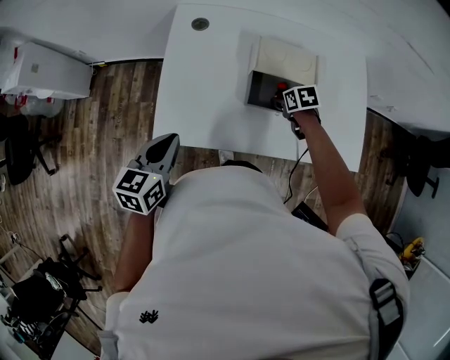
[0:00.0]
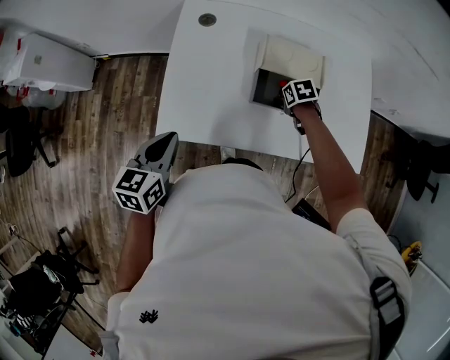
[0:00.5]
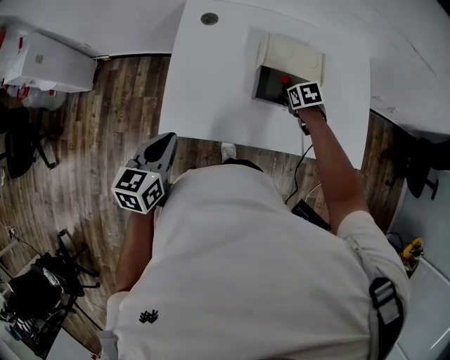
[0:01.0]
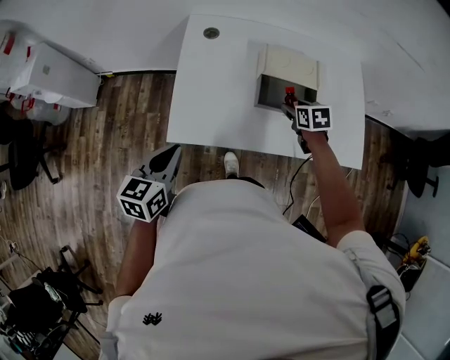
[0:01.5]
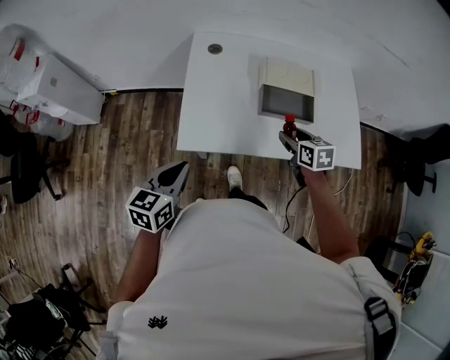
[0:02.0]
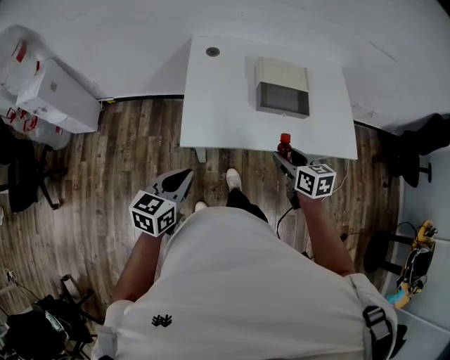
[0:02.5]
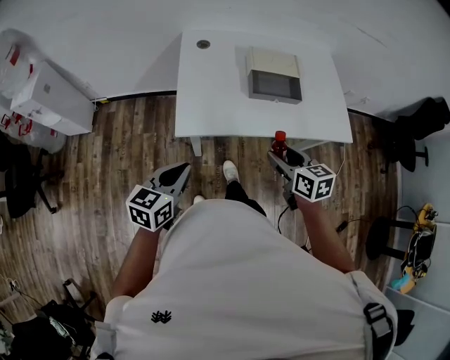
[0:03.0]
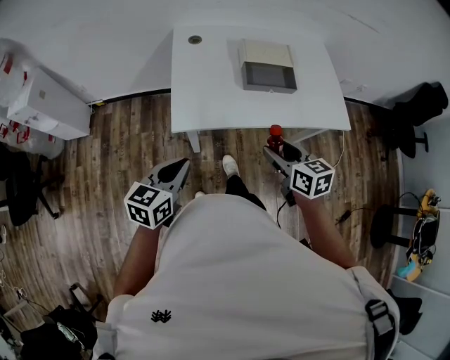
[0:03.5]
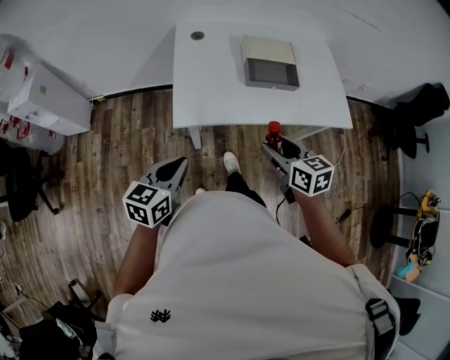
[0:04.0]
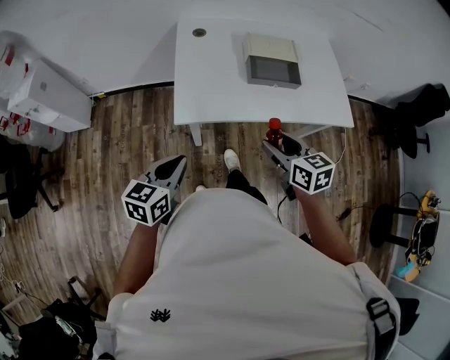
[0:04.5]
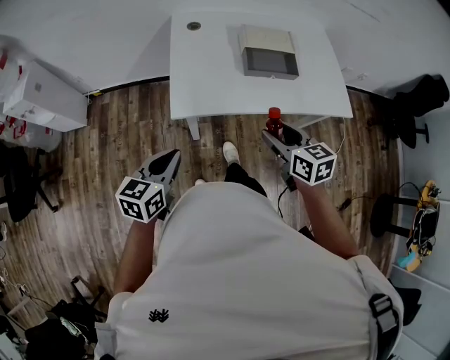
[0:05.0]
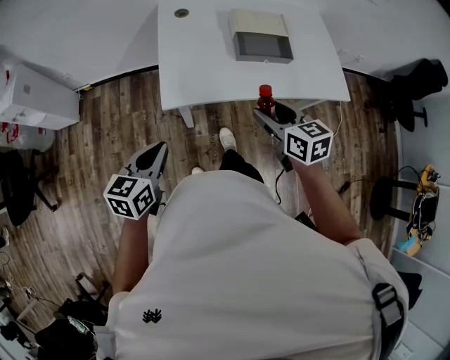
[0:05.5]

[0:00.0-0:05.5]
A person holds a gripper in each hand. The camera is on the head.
0:00.0 to 0:02.0: The right gripper ends up roughly 20 cm from where it was, and turns by approximately 30 degrees, while the left gripper moves roughly 10 cm.
0:02.0 to 0:03.5: The right gripper heads backward, covering about 20 cm. The left gripper heads backward, covering about 10 cm.
0:03.5 to 0:05.5: The grippers make only small movements.

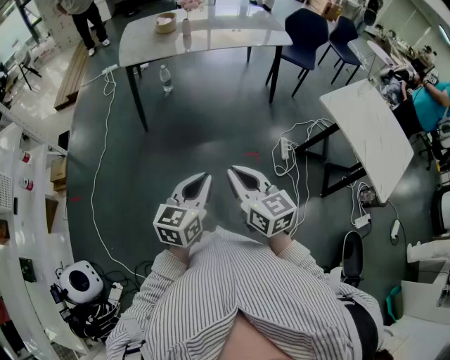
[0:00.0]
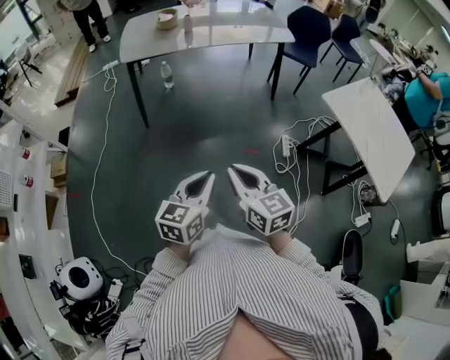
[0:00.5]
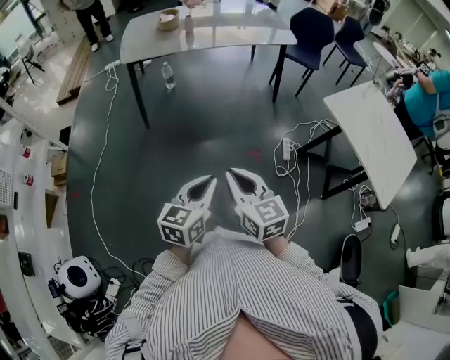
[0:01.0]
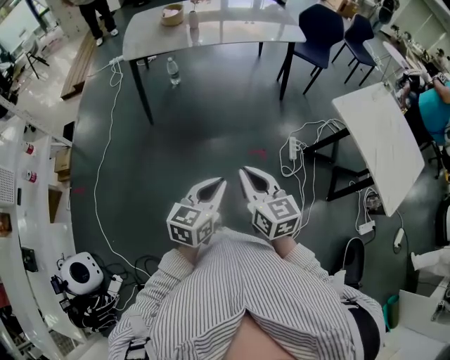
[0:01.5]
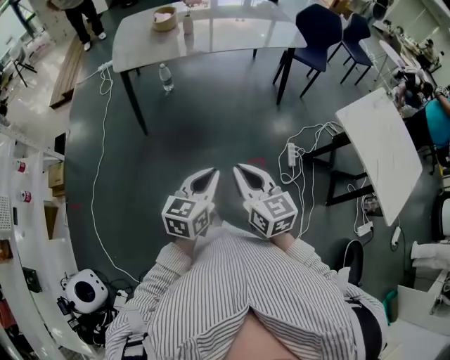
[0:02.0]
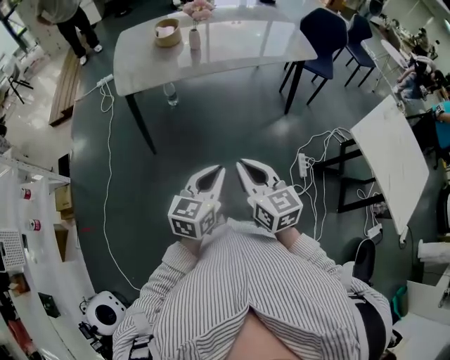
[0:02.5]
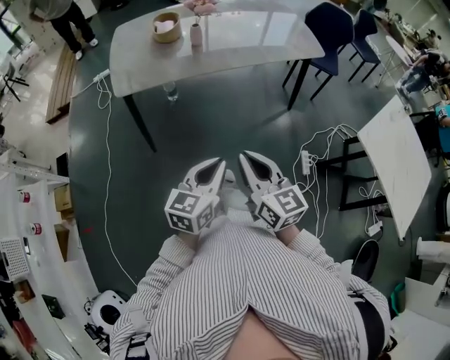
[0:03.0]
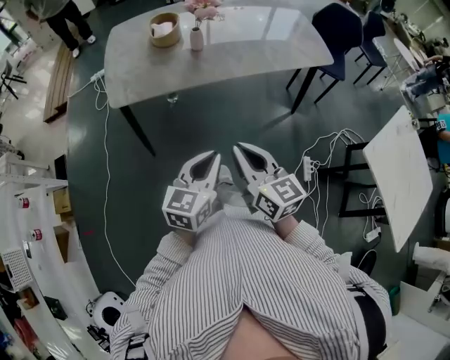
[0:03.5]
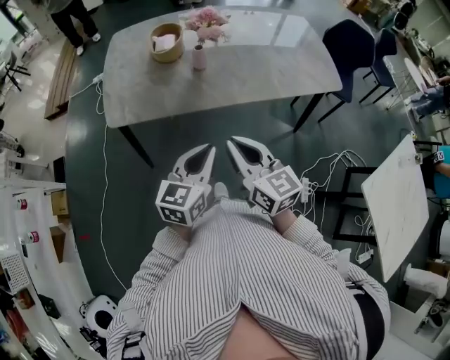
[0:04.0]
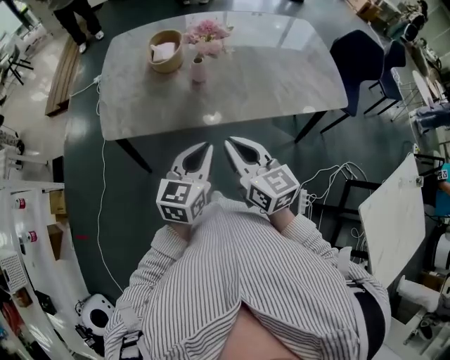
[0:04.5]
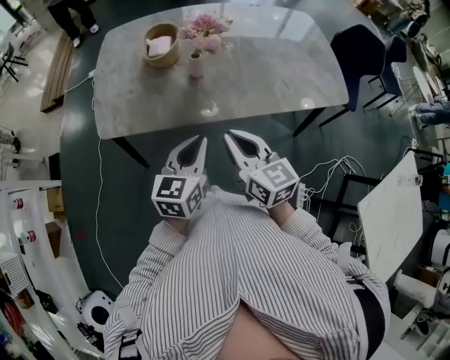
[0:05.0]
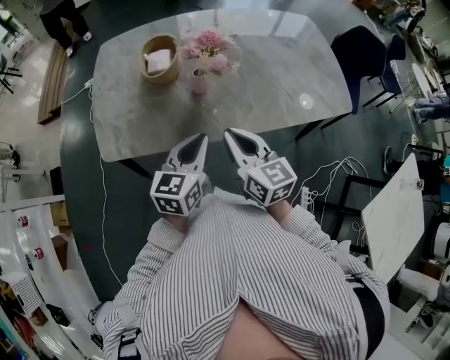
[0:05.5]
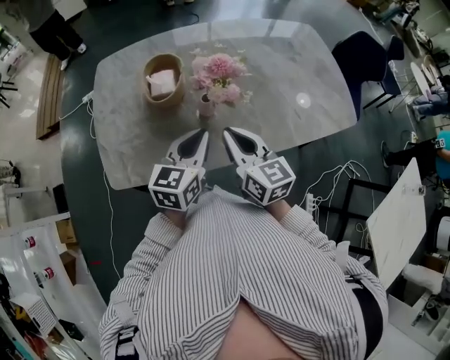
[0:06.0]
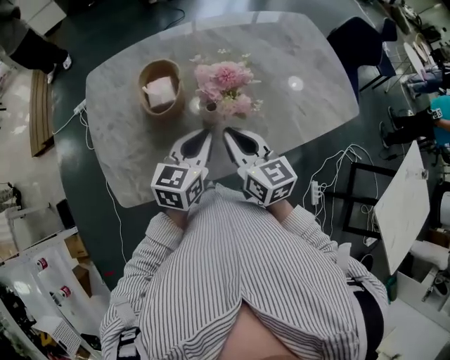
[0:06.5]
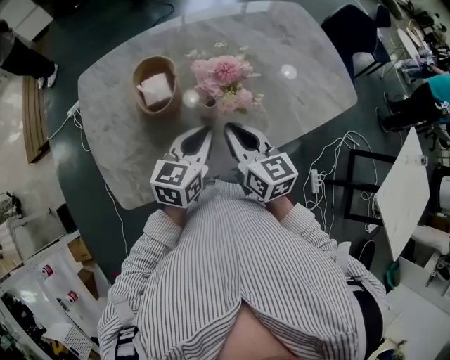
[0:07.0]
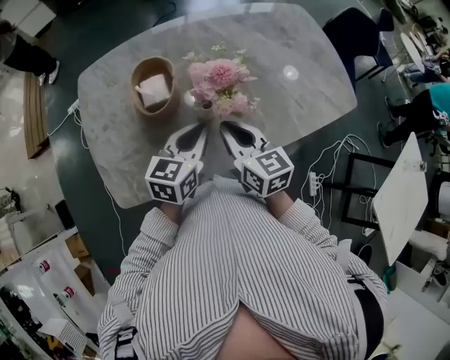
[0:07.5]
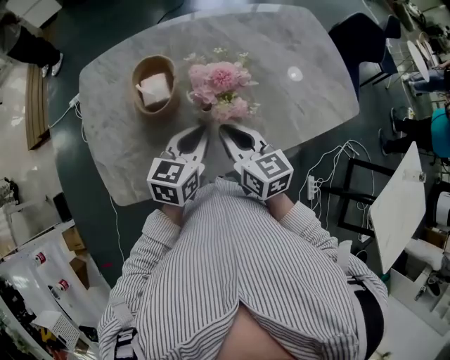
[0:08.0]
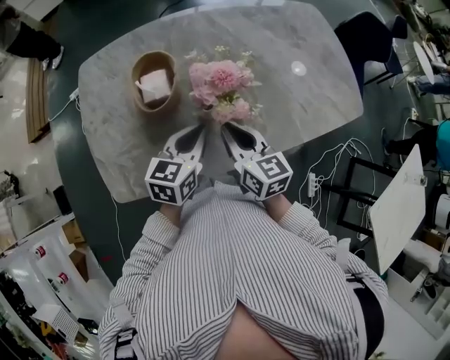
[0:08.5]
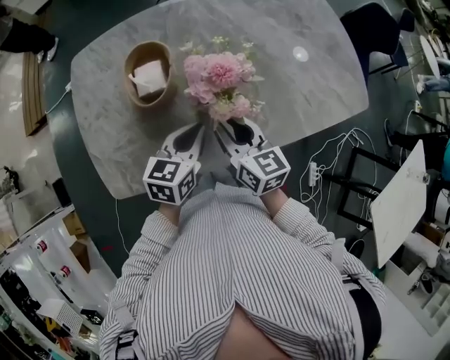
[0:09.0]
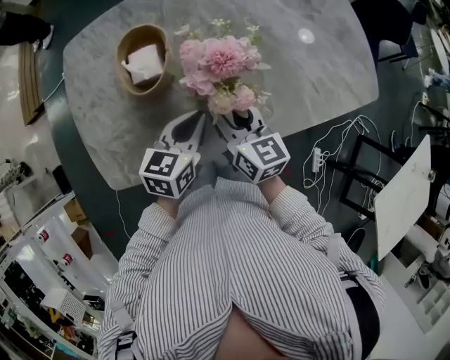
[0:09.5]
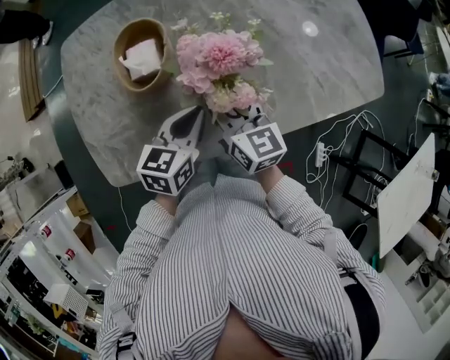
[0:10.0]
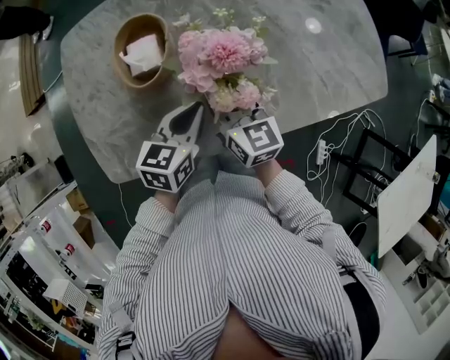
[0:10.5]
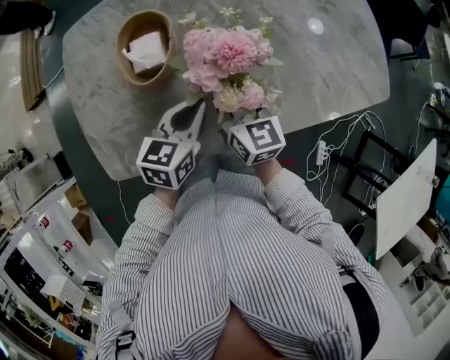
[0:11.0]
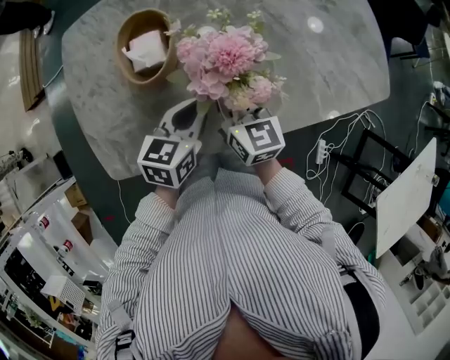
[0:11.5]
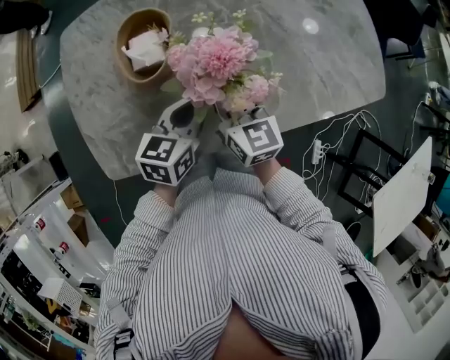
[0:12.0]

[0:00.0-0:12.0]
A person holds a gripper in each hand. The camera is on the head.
0:00.0 to 0:02.0: The grippers both shift forward by approximately 15 cm.
0:02.0 to 0:04.0: The two grippers travel together, forward, some 50 cm.
0:04.0 to 0:06.0: Both grippers travel together forward, about 30 cm.
0:06.0 to 0:08.0: Both grippers move forward, roughly 5 cm.
0:08.0 to 0:10.0: The right gripper goes about 5 cm forward, and opens up; the left gripper shifts approximately 5 cm downward.
0:10.0 to 0:12.0: The right gripper closes its fingers.

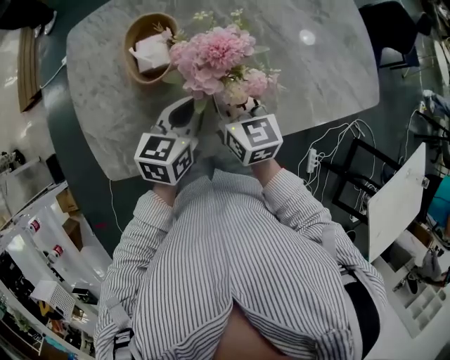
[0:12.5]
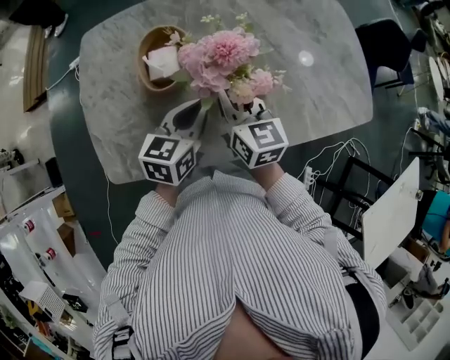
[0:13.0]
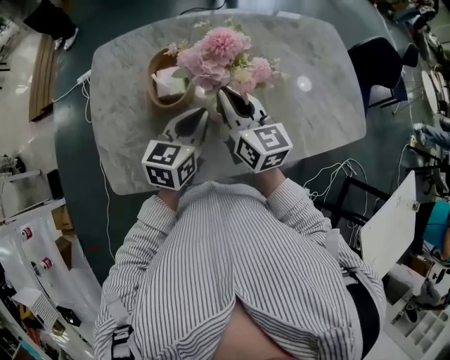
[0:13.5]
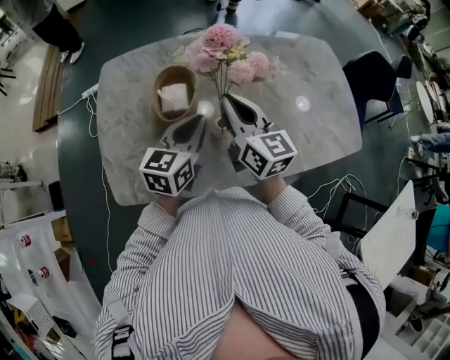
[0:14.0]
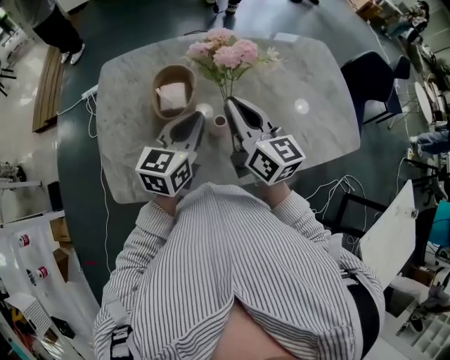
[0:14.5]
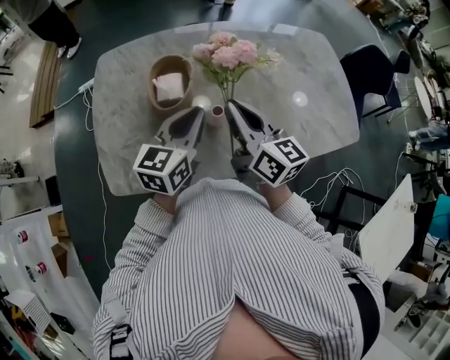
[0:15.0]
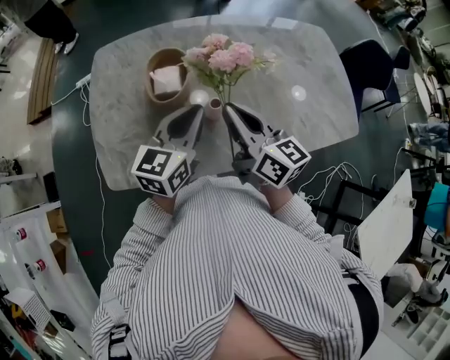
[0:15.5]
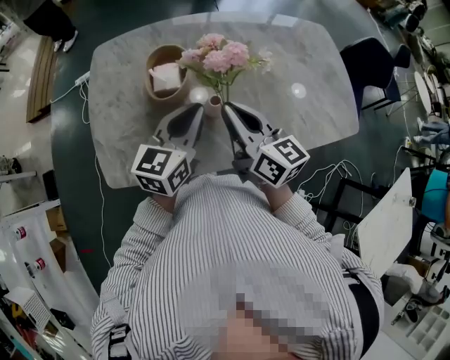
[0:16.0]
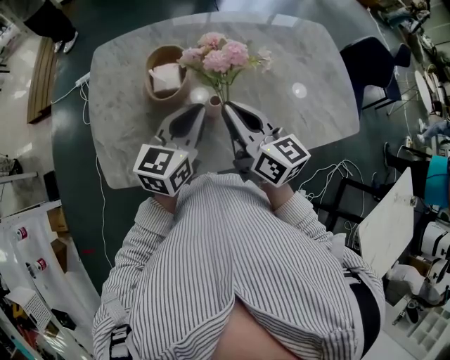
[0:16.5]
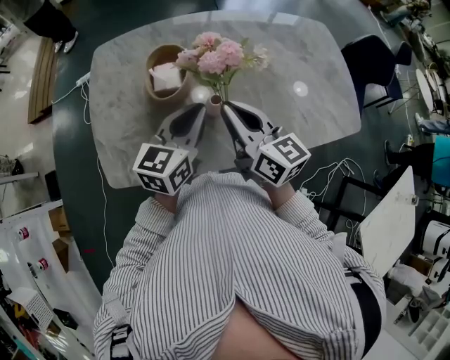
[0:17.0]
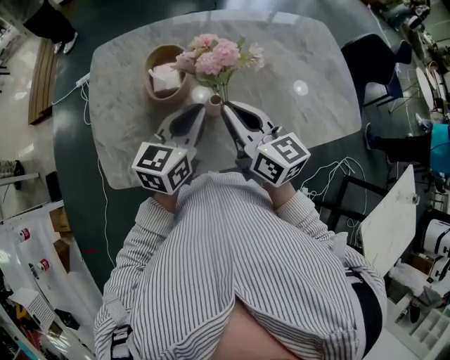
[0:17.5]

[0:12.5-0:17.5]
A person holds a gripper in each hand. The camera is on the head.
0:12.5 to 0:15.0: The two grippers go about 10 cm upward.
0:15.0 to 0:17.5: The grippers move only a little.

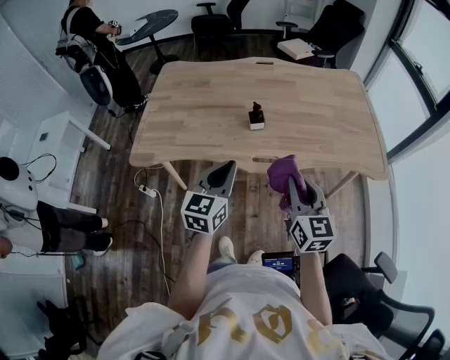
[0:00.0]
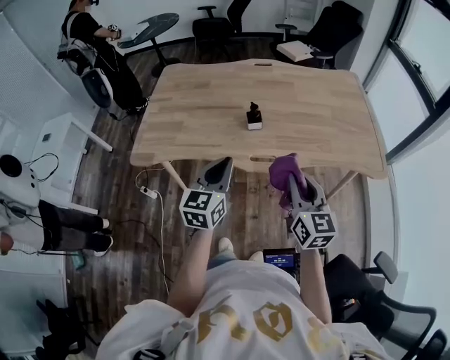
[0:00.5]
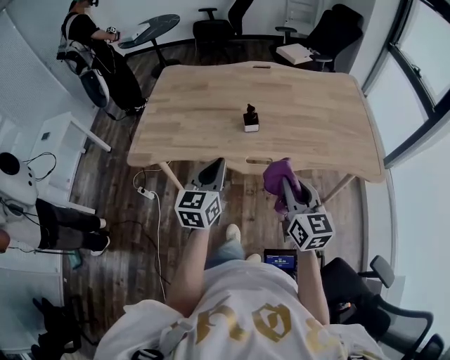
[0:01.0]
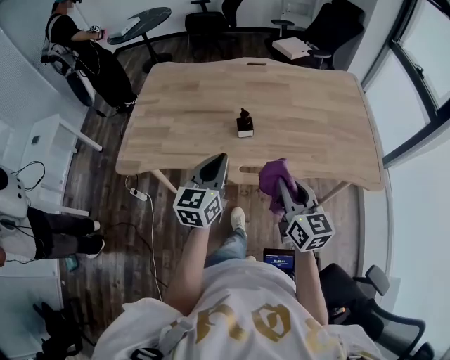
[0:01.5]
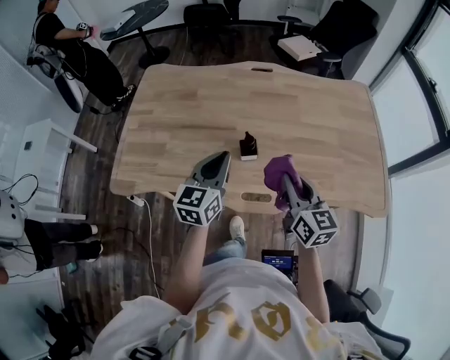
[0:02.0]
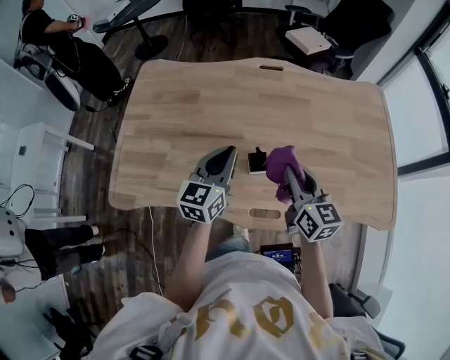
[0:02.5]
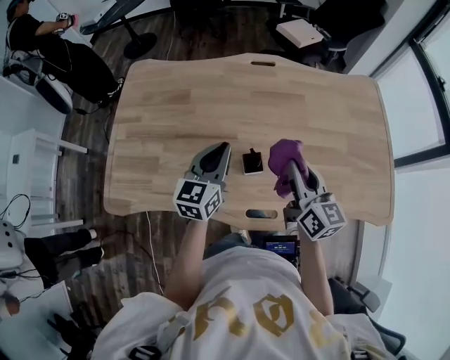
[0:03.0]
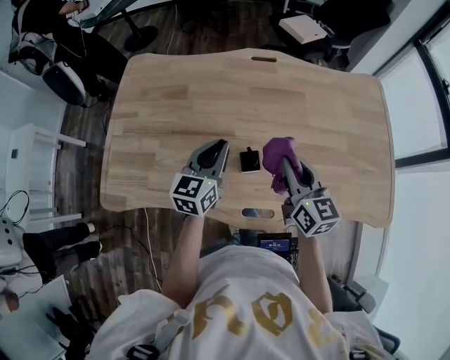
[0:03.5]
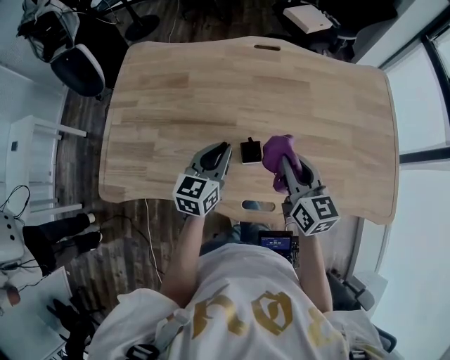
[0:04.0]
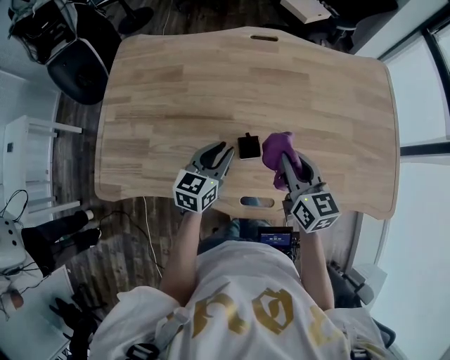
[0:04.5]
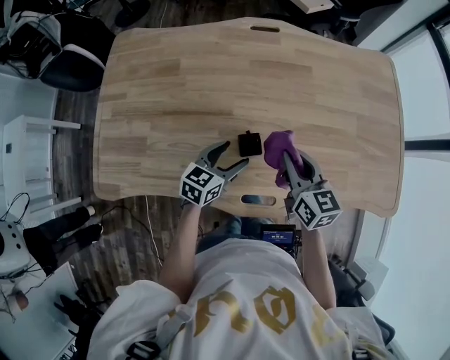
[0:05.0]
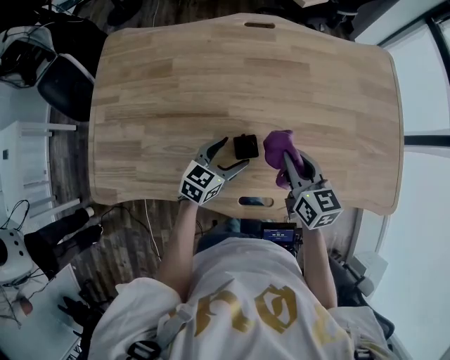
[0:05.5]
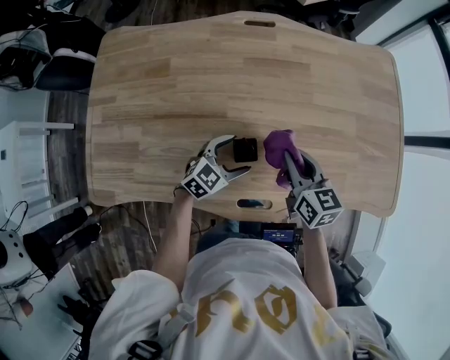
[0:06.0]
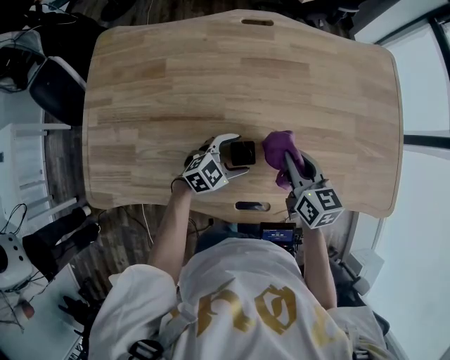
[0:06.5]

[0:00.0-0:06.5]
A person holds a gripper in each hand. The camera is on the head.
0:00.0 to 0:02.0: Both grippers travel together forward, some 25 cm.
0:02.0 to 0:04.5: The right gripper shifts approximately 15 cm forward and downward, while the left gripper is displaced downward and forward by approximately 20 cm.
0:04.5 to 0:06.5: The right gripper is displaced downward by about 5 cm, while the left gripper moves downward and to the right, some 15 cm, rotates approximately 50 degrees, and opens up.
